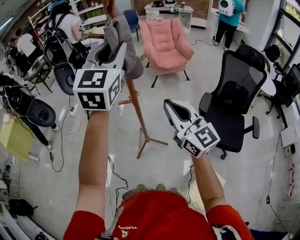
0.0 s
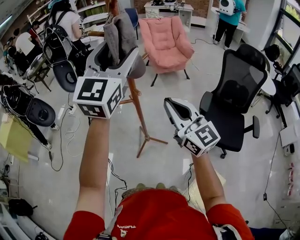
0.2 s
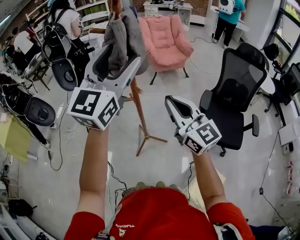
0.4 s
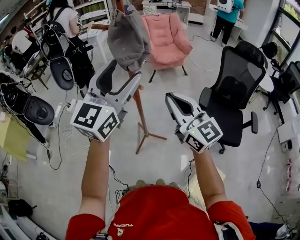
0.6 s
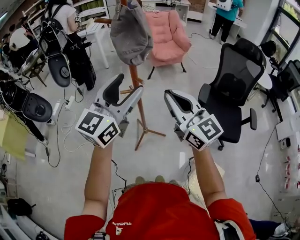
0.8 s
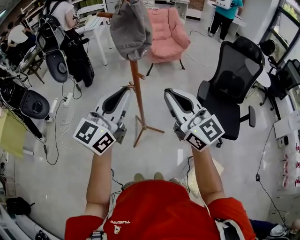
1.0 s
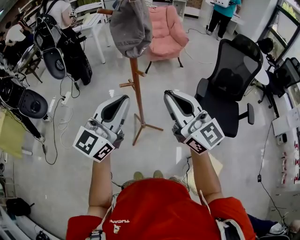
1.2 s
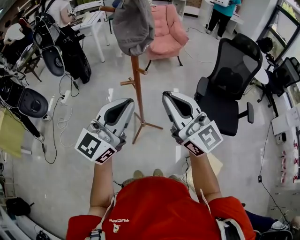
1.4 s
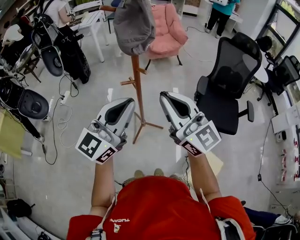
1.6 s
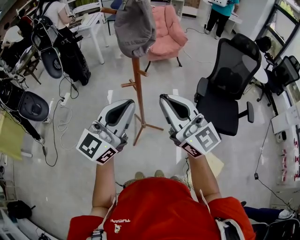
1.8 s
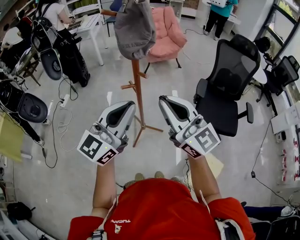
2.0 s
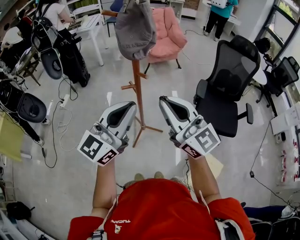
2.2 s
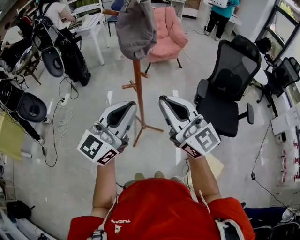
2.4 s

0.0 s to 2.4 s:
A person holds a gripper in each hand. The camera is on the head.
0.0 to 1.2 s: The left gripper heads downward and backward, covering about 20 cm, rotates approximately 30 degrees, and opens, then closes once more, while the right gripper shifts by roughly 5 cm.
1.2 to 2.4 s: The grippers move only a little.

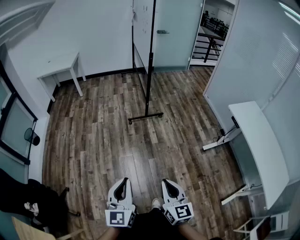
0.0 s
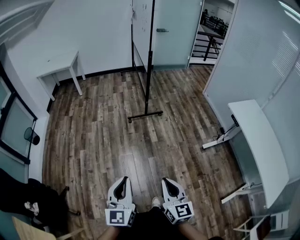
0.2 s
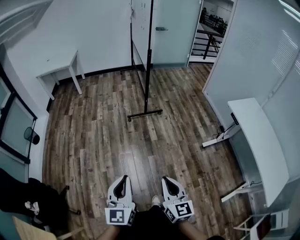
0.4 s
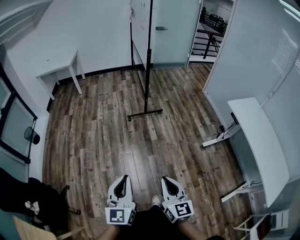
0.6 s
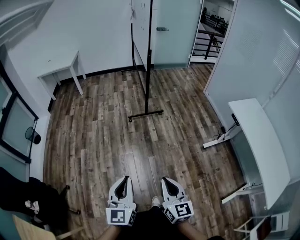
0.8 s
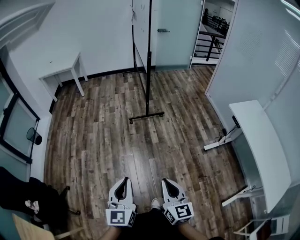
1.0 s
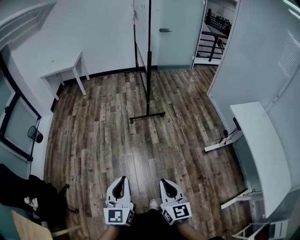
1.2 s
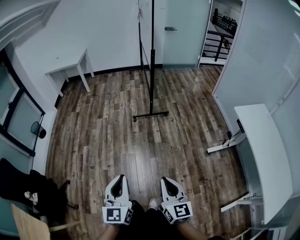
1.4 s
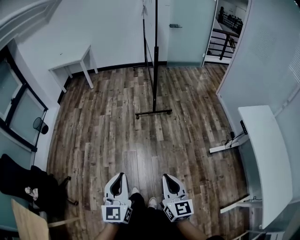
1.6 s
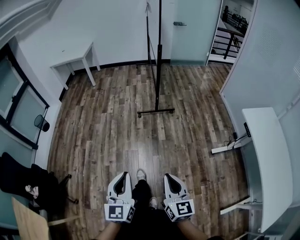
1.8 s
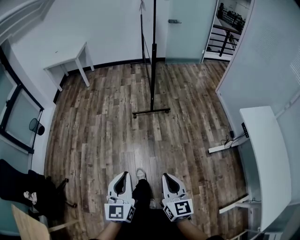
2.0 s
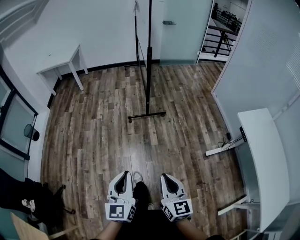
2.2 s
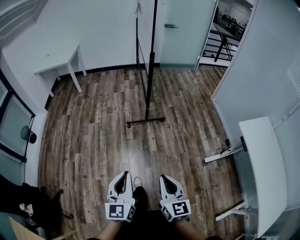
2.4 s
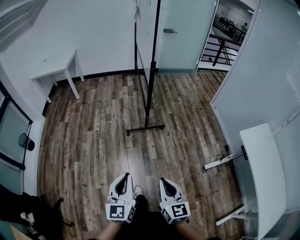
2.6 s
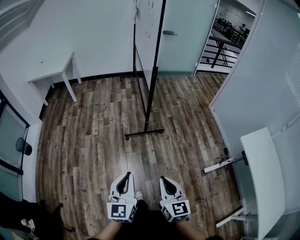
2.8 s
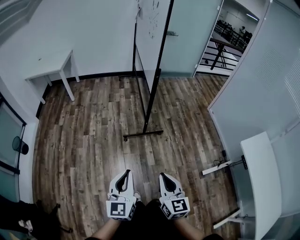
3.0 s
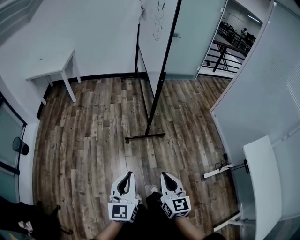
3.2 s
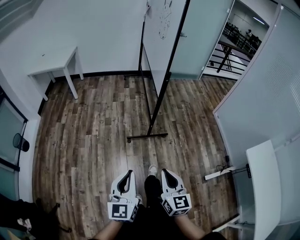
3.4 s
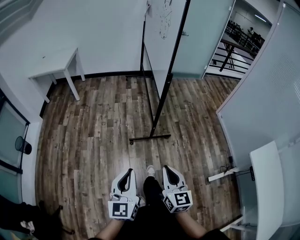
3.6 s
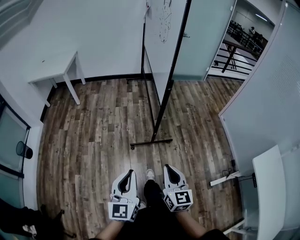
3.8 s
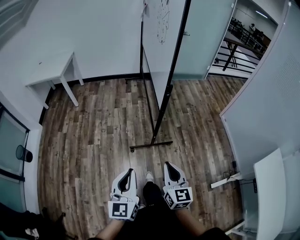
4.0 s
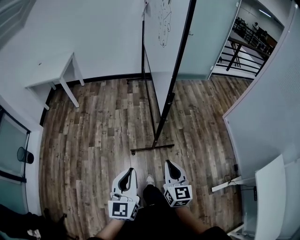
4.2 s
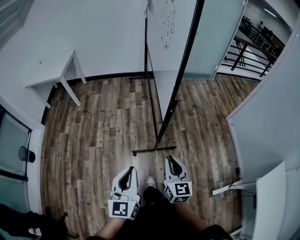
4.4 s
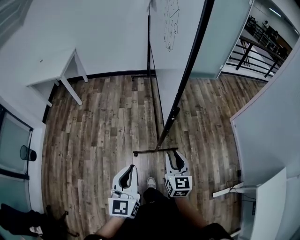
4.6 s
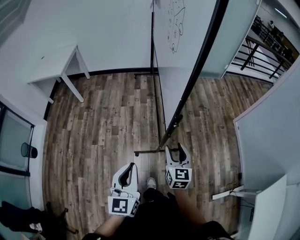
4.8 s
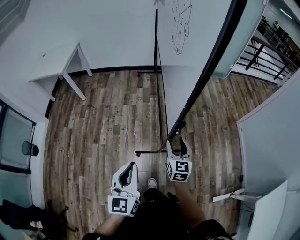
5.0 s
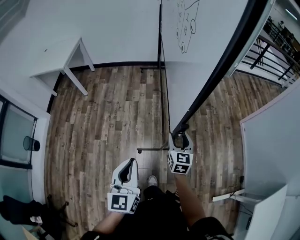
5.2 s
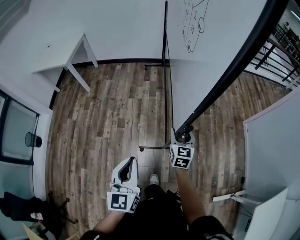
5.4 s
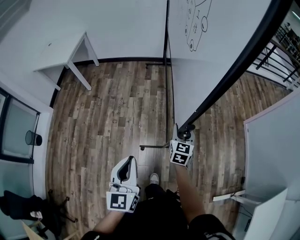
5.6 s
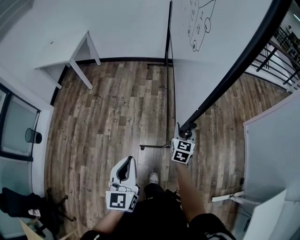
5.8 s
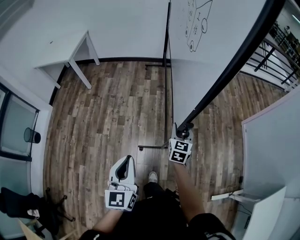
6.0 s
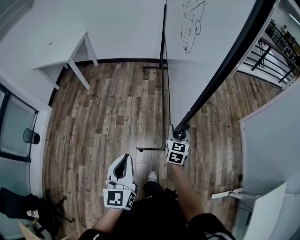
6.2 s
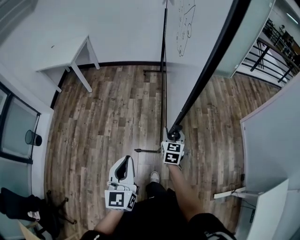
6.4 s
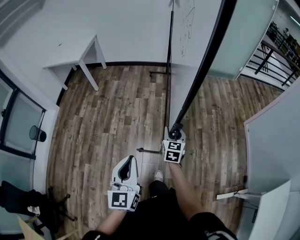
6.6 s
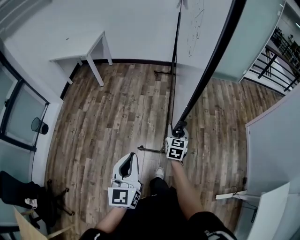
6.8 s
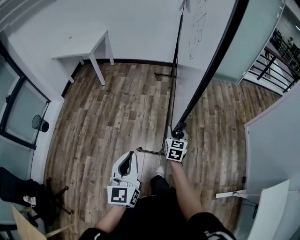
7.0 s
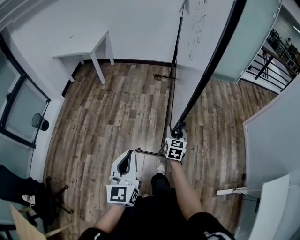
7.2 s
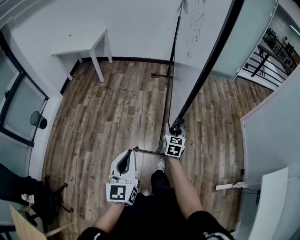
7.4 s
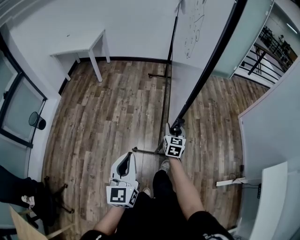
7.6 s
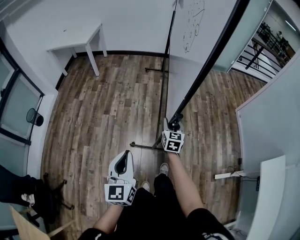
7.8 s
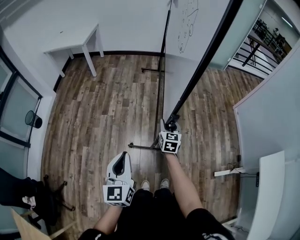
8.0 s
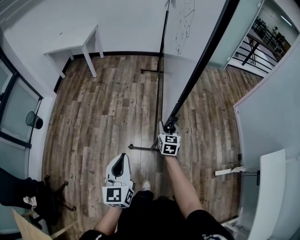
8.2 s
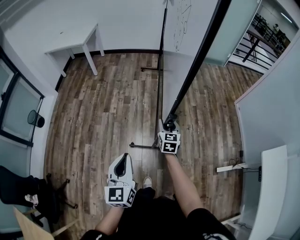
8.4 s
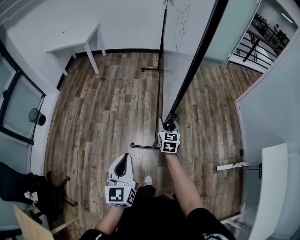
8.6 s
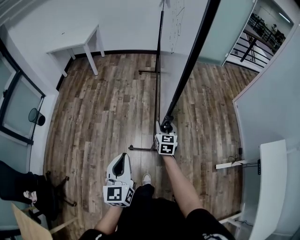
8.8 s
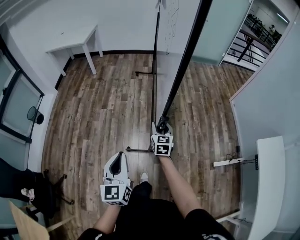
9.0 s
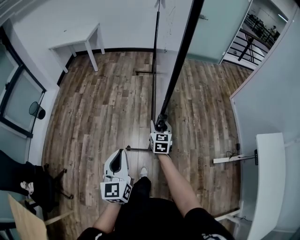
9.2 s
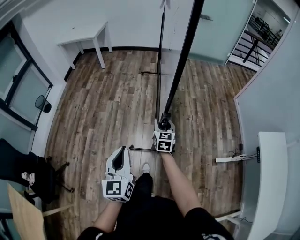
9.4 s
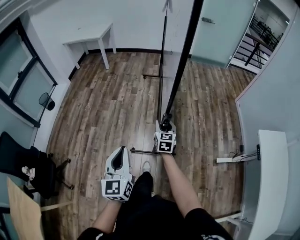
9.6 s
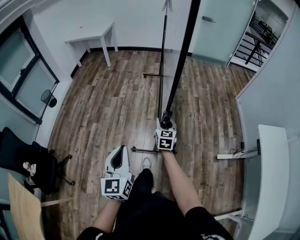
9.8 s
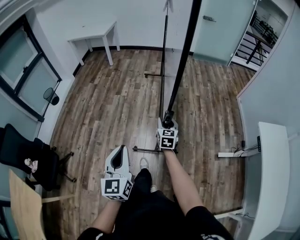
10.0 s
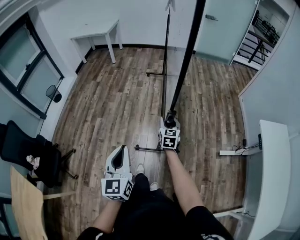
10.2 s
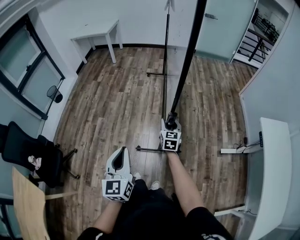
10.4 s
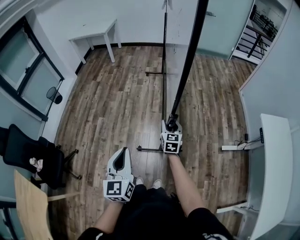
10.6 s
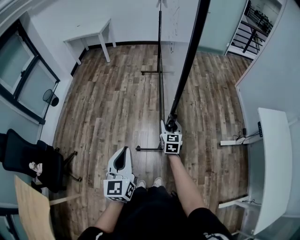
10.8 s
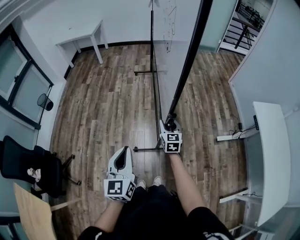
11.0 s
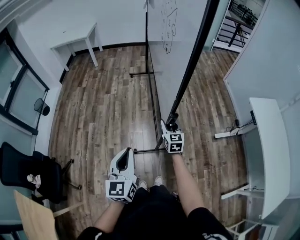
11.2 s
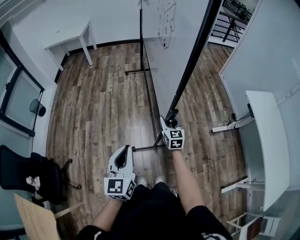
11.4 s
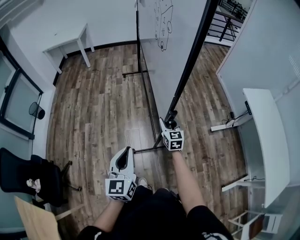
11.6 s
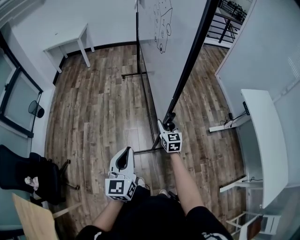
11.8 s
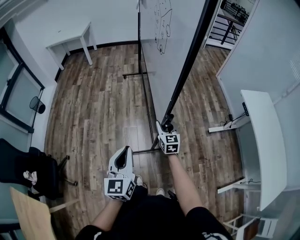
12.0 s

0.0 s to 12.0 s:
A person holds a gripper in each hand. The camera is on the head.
0.0 to 1.6 s: Both grippers travel together to the right, approximately 10 cm.
1.6 to 3.0 s: The grippers both shift forward by approximately 40 cm.
3.0 to 4.4 s: Both grippers move forward, some 40 cm.
4.4 to 6.0 s: The right gripper goes approximately 30 cm forward, and opens. Meanwhile the left gripper travels forward by approximately 15 cm.
6.0 to 7.6 s: The left gripper travels backward by approximately 35 cm, while the right gripper travels backward and to the left by roughly 35 cm.
7.6 to 9.0 s: Both grippers move backward, roughly 20 cm.
9.0 to 10.4 s: Both grippers move backward, approximately 30 cm.
10.4 to 12.0 s: The right gripper travels backward by some 15 cm; the left gripper moves backward, roughly 10 cm.

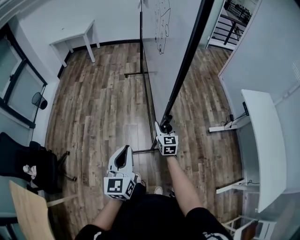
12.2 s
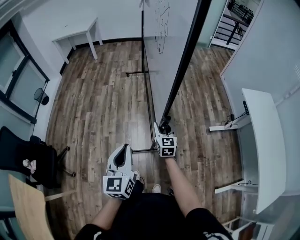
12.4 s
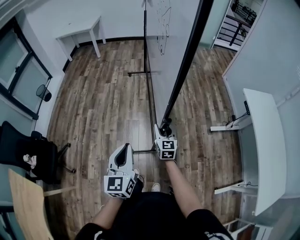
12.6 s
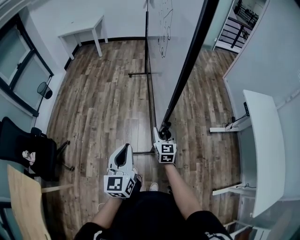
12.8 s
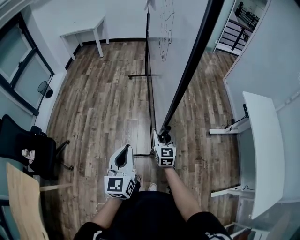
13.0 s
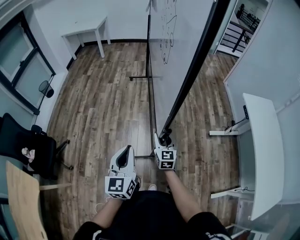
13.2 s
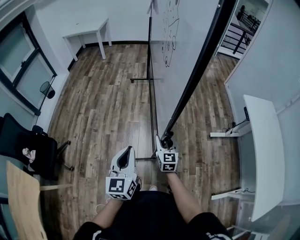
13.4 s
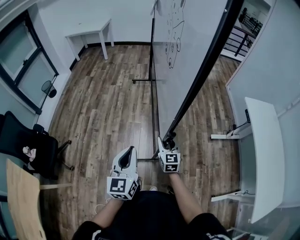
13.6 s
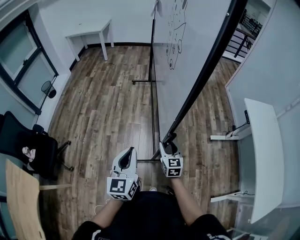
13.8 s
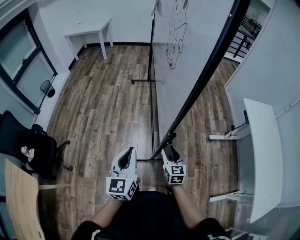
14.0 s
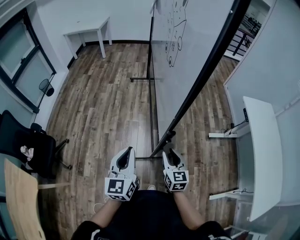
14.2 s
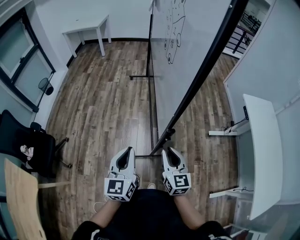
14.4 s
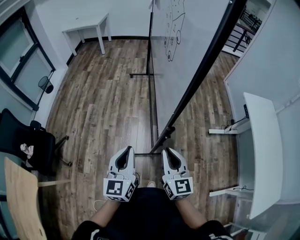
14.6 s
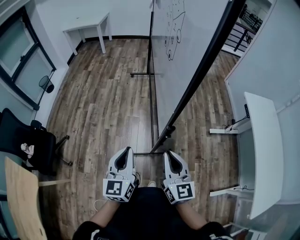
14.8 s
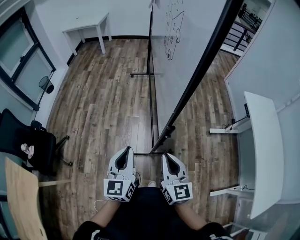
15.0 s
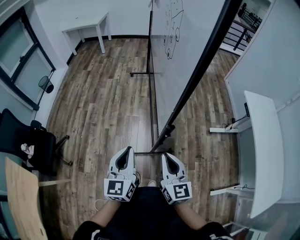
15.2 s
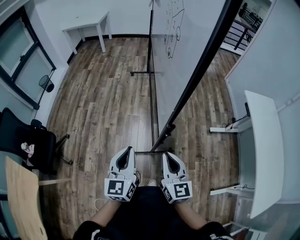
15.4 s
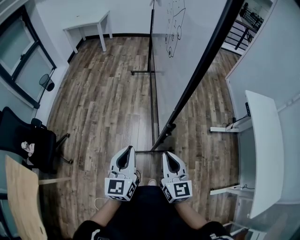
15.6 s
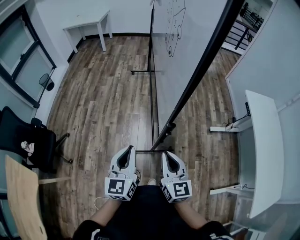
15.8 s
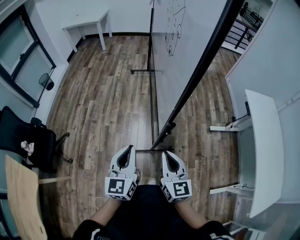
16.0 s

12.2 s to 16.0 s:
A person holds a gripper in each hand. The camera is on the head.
12.2 to 13.4 s: The right gripper shifts approximately 15 cm backward. Meanwhile the left gripper moves backward, about 10 cm.
13.4 to 14.8 s: The right gripper travels upward and backward by approximately 20 cm, and closes.
14.8 to 16.0 s: There are only small adjustments of the grippers.

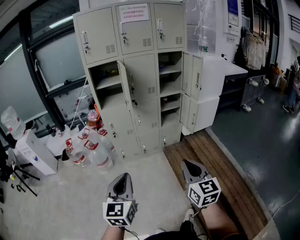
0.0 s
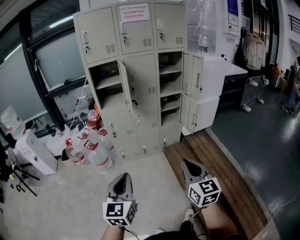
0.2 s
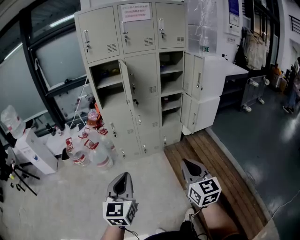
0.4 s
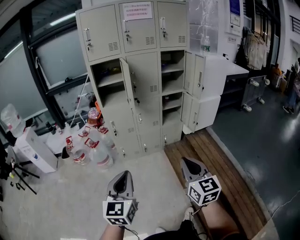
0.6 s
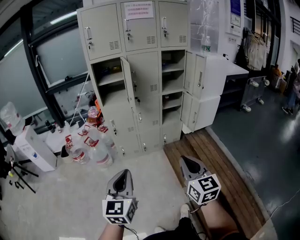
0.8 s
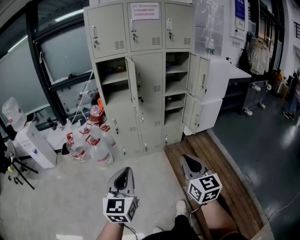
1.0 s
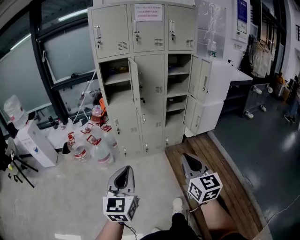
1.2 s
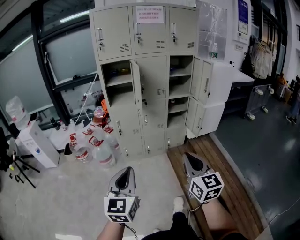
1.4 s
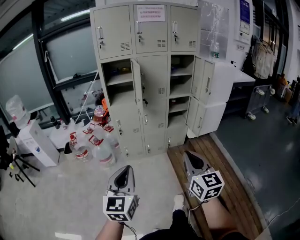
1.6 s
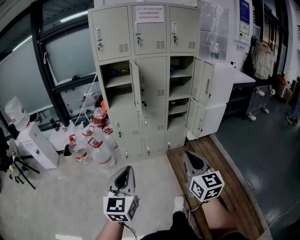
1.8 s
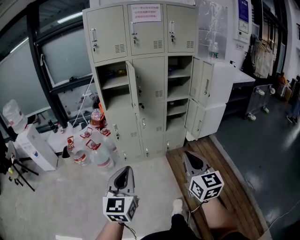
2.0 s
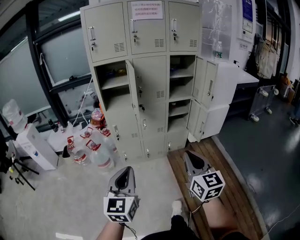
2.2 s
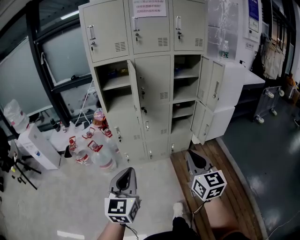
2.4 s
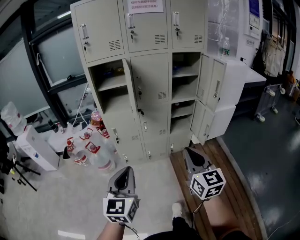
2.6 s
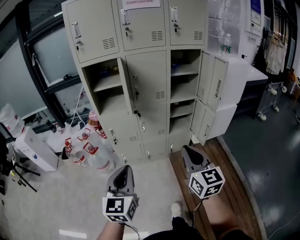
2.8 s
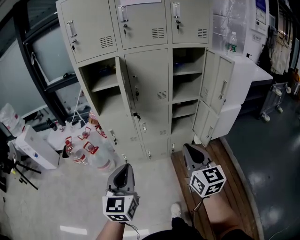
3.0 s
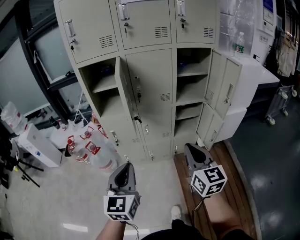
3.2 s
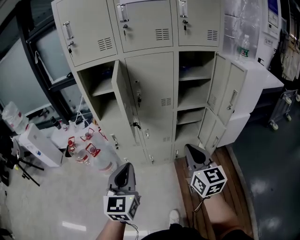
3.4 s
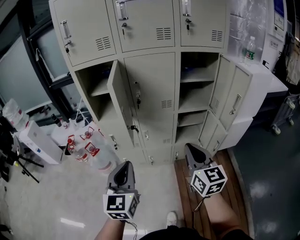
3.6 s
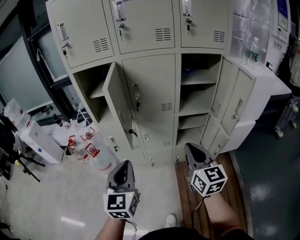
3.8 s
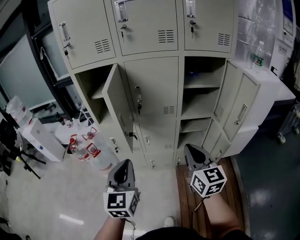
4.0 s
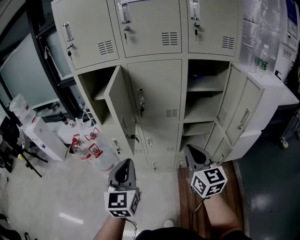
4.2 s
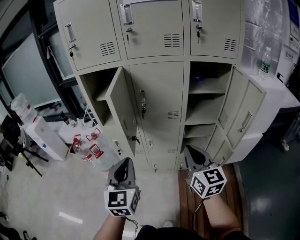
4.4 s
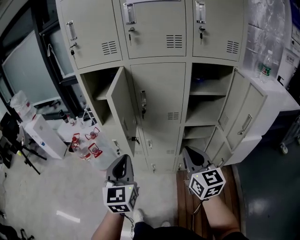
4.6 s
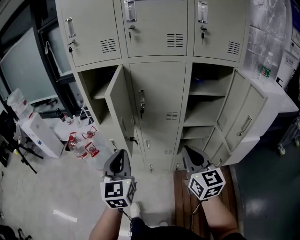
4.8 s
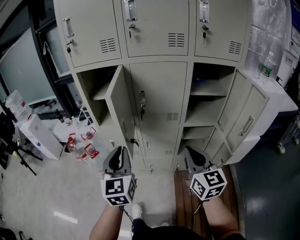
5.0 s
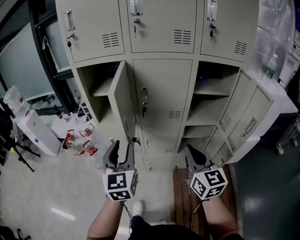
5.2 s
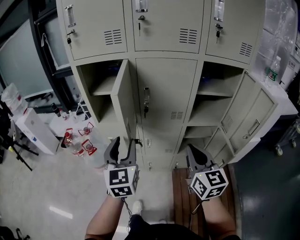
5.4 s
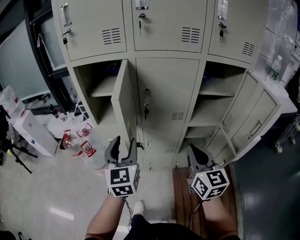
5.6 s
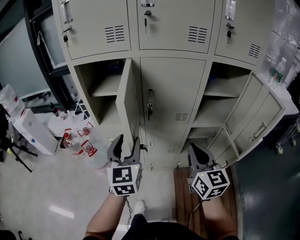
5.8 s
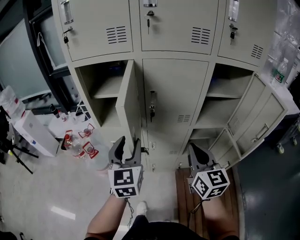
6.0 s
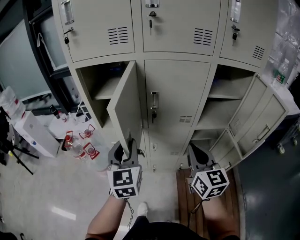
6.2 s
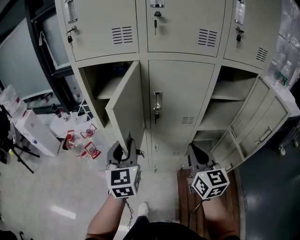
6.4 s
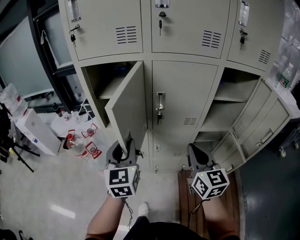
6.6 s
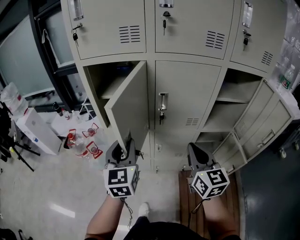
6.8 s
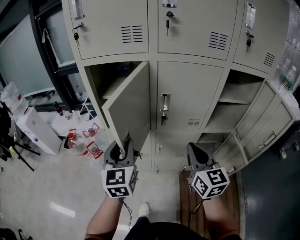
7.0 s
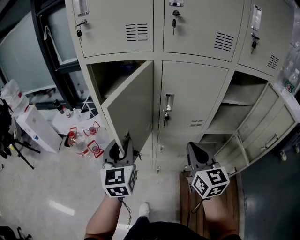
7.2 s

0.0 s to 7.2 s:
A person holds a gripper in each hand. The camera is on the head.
0.0 to 1.4 s: The right gripper shifts by about 5 cm.
1.4 to 2.8 s: The two grippers go approximately 25 cm forward.
2.8 to 4.4 s: The right gripper is displaced forward by about 25 cm. Meanwhile the left gripper moves forward and to the right, about 25 cm.
4.4 to 5.8 s: The right gripper heads forward, covering approximately 10 cm. Meanwhile the left gripper travels forward by about 15 cm, and opens its fingers.
5.8 to 7.2 s: The left gripper moves to the left, some 10 cm. The right gripper travels to the left and forward by about 10 cm.
